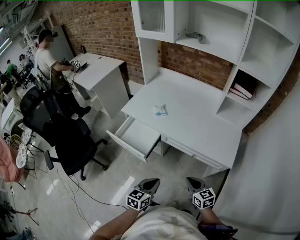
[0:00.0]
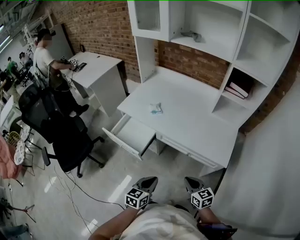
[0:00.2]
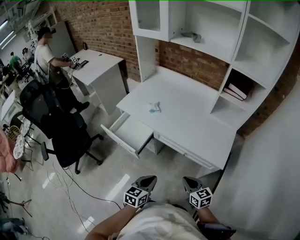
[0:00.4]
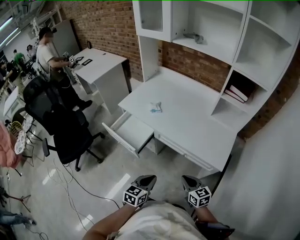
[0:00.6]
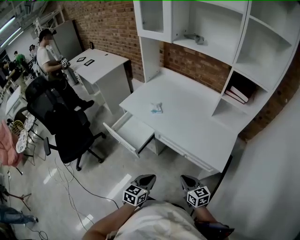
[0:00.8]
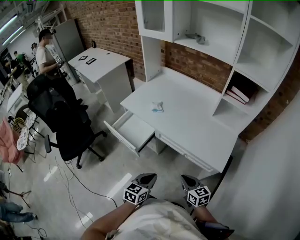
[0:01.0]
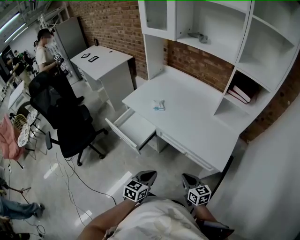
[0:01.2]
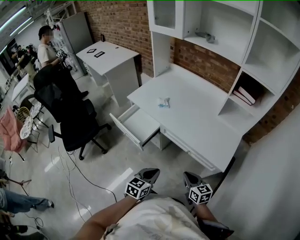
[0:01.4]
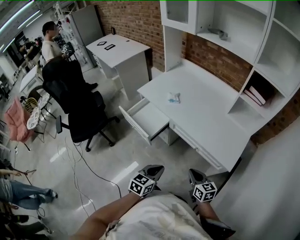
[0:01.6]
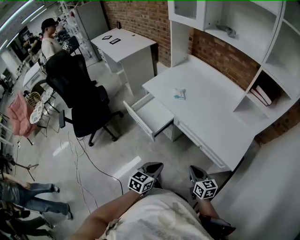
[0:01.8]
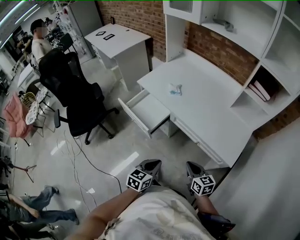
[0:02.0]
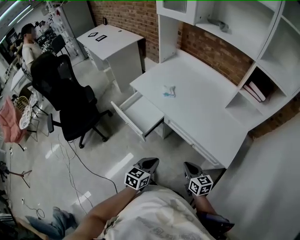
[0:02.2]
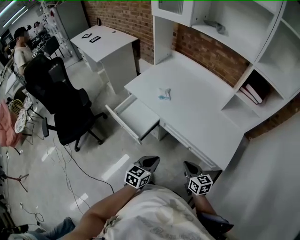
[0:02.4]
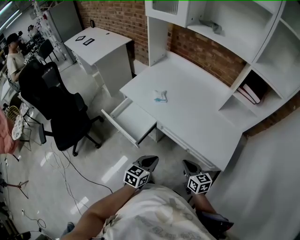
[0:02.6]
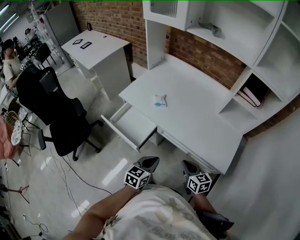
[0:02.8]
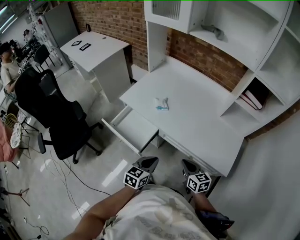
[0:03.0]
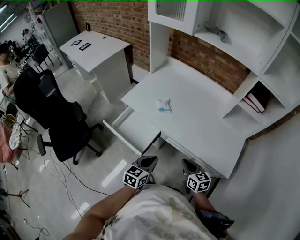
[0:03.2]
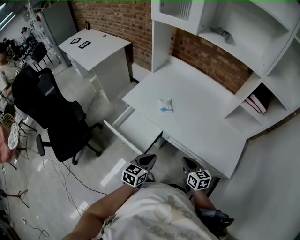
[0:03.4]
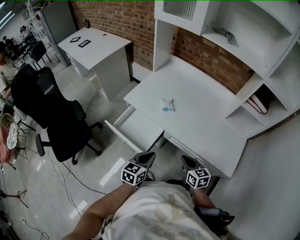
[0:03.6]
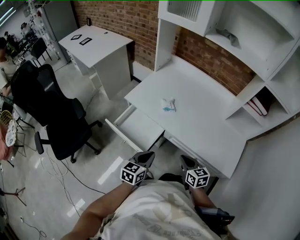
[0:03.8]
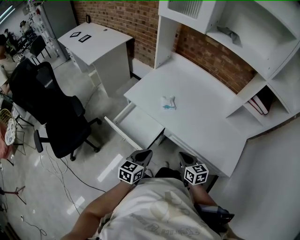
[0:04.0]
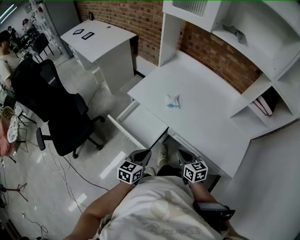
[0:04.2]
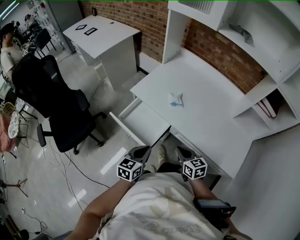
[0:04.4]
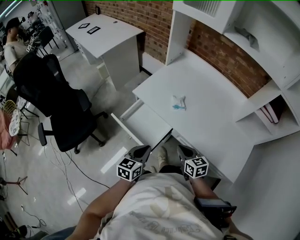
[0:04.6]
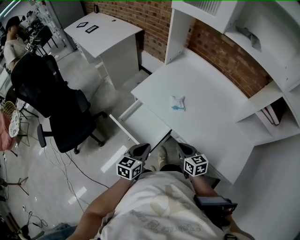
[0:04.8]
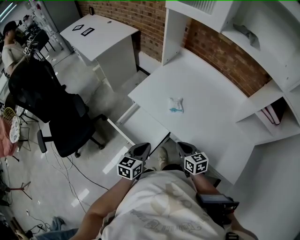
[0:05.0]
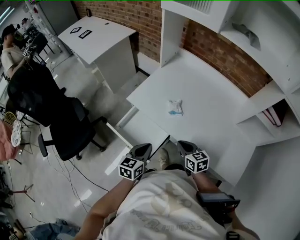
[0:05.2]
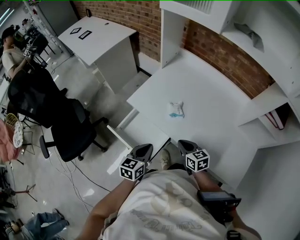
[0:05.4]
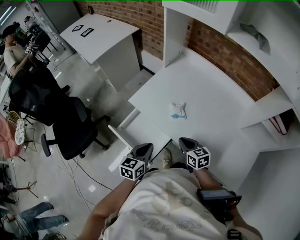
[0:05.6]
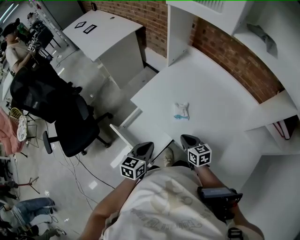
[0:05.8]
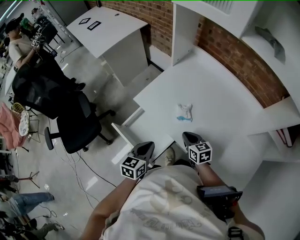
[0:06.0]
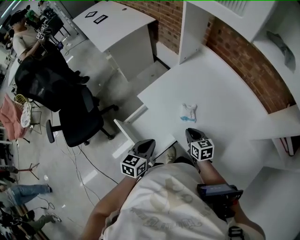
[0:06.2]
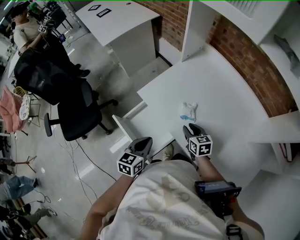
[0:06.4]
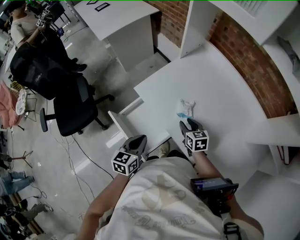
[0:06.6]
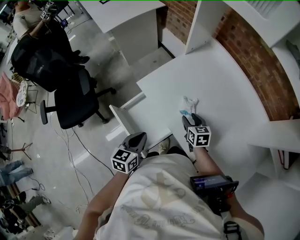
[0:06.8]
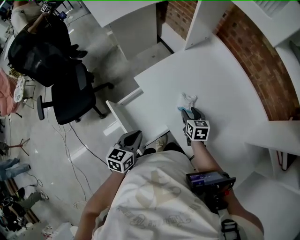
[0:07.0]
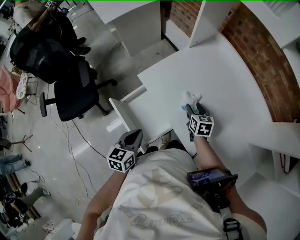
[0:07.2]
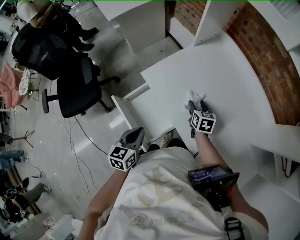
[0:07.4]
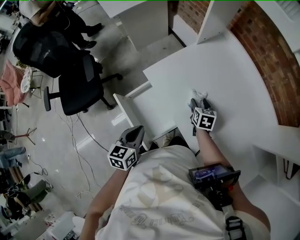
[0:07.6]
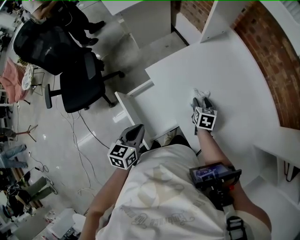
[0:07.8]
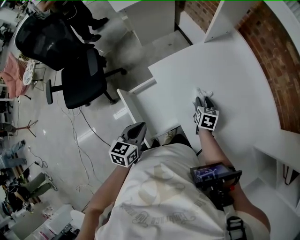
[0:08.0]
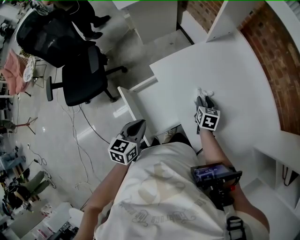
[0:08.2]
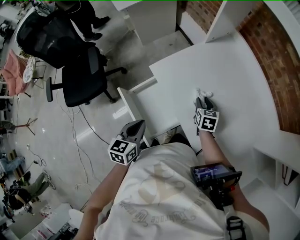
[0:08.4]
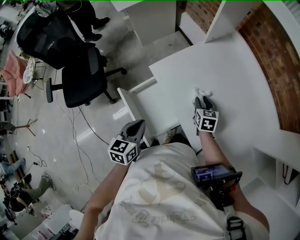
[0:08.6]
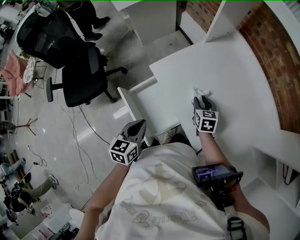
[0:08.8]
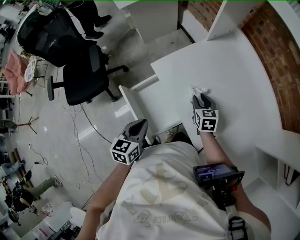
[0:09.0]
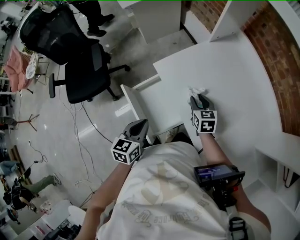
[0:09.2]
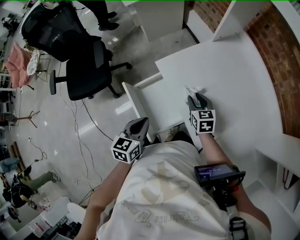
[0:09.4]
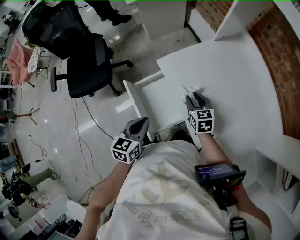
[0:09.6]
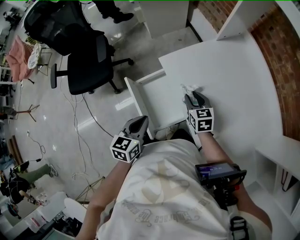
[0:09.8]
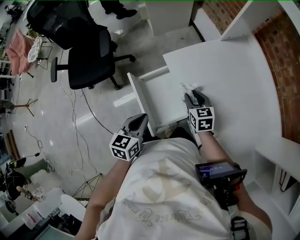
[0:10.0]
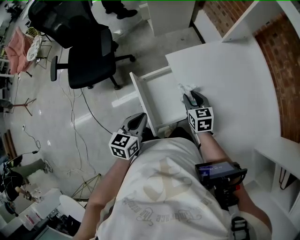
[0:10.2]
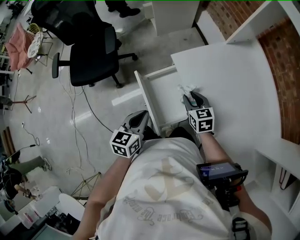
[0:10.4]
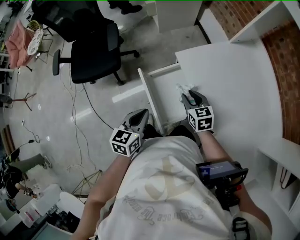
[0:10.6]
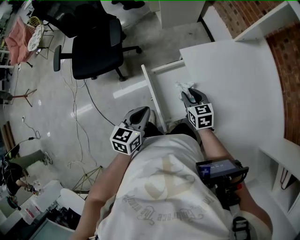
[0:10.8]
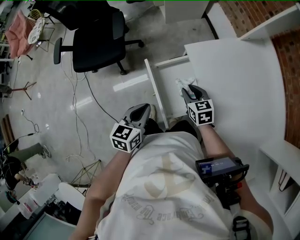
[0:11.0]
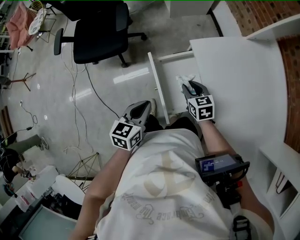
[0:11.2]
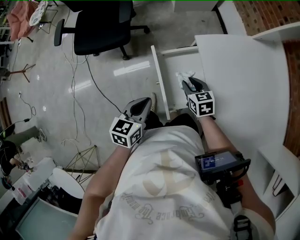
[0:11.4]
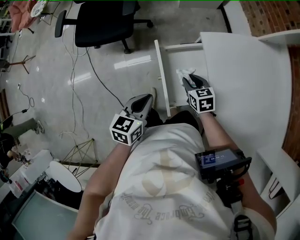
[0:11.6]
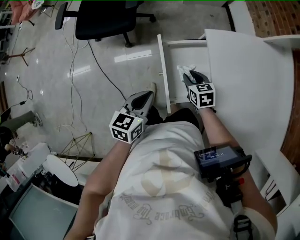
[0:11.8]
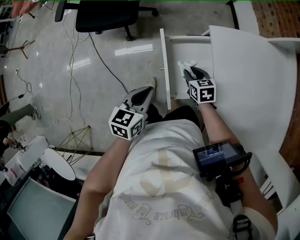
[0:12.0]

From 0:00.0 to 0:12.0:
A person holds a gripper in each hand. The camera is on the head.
From 0:00.0 to 0:01.6: The grippers both shift to the right by roughly 5 cm.
From 0:01.6 to 0:03.0: The left gripper shifts approximately 15 cm forward; the right gripper shifts approximately 15 cm forward and to the left.
From 0:03.0 to 0:04.4: The left gripper goes some 15 cm to the left. Meanwhile the right gripper goes approximately 15 cm to the left and forward.
From 0:04.4 to 0:06.0: The two grippers go about 15 cm forward.
From 0:06.0 to 0:07.6: The left gripper goes some 5 cm to the left. Meanwhile the right gripper travels forward and downward by about 15 cm, and opens.
From 0:07.6 to 0:09.0: The right gripper shifts by some 5 cm.
From 0:09.0 to 0:10.4: The left gripper travels to the left by some 5 cm, while the right gripper travels to the left by some 15 cm, and changes its angle by about 20 degrees.
From 0:10.4 to 0:12.0: The right gripper goes roughly 15 cm downward and to the left, and rotates roughly 20 degrees. The left gripper goes approximately 5 cm to the left.

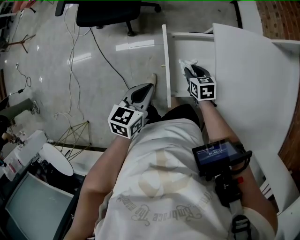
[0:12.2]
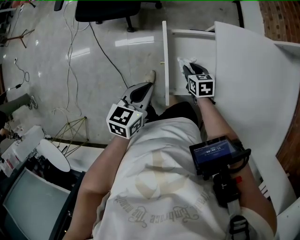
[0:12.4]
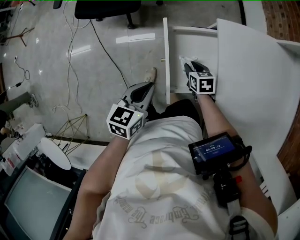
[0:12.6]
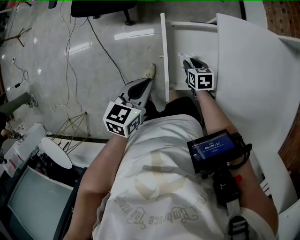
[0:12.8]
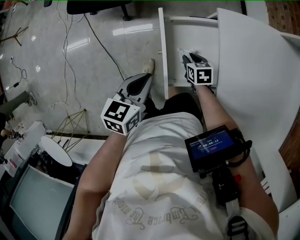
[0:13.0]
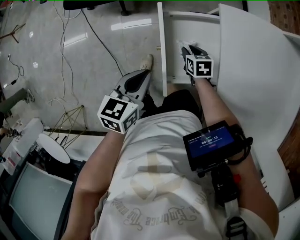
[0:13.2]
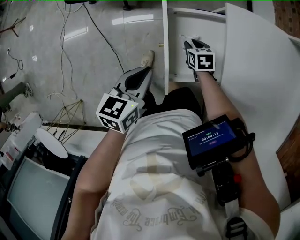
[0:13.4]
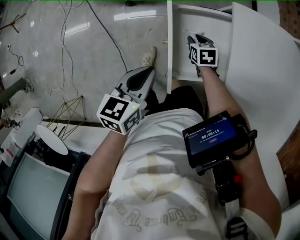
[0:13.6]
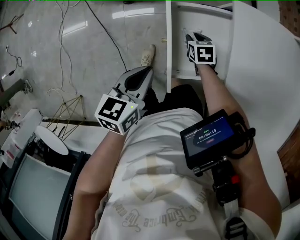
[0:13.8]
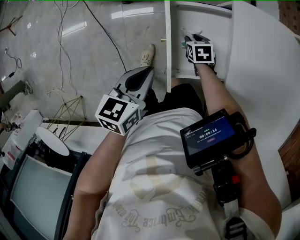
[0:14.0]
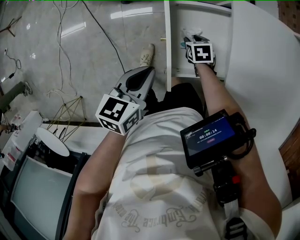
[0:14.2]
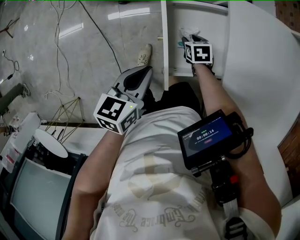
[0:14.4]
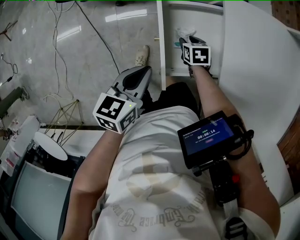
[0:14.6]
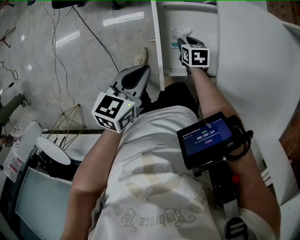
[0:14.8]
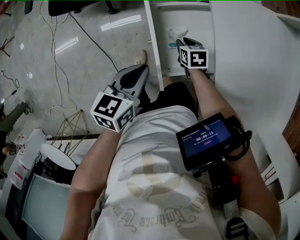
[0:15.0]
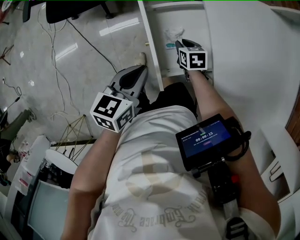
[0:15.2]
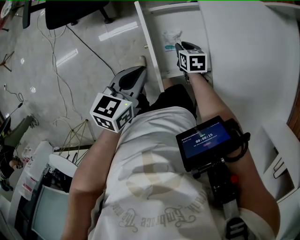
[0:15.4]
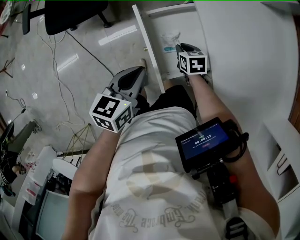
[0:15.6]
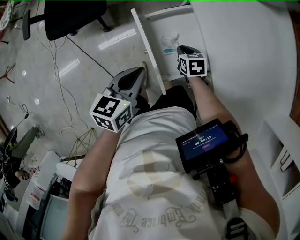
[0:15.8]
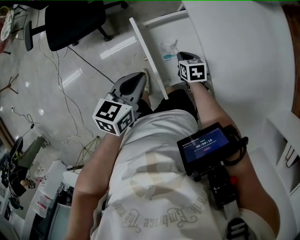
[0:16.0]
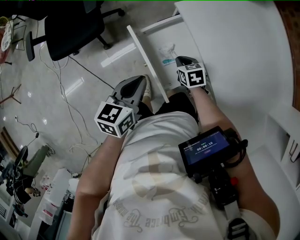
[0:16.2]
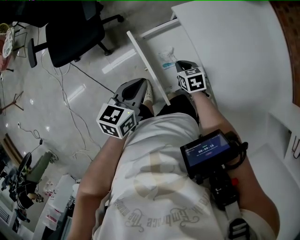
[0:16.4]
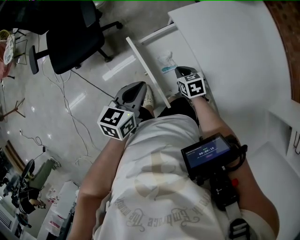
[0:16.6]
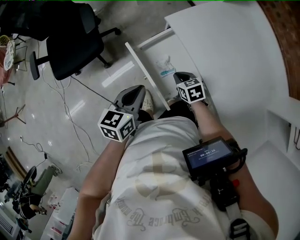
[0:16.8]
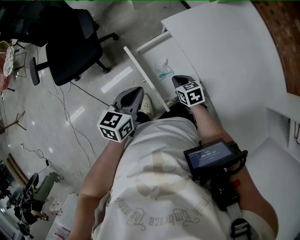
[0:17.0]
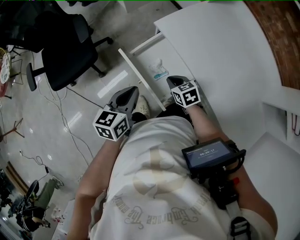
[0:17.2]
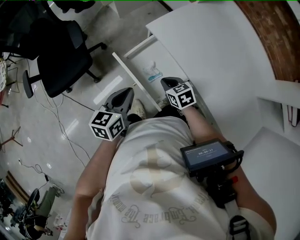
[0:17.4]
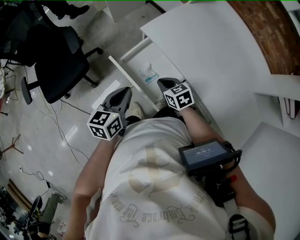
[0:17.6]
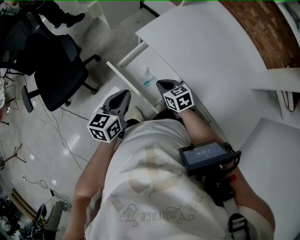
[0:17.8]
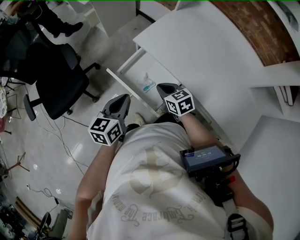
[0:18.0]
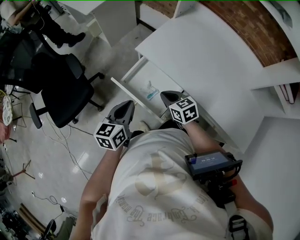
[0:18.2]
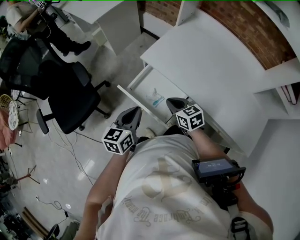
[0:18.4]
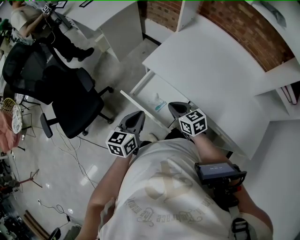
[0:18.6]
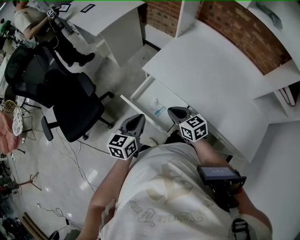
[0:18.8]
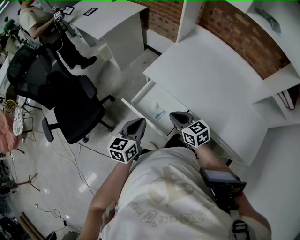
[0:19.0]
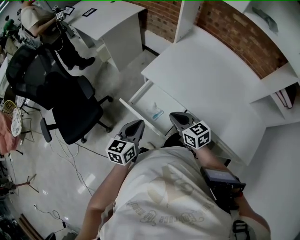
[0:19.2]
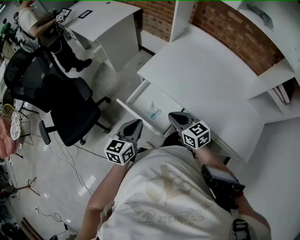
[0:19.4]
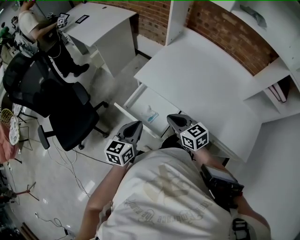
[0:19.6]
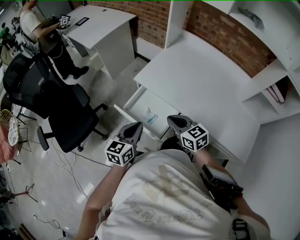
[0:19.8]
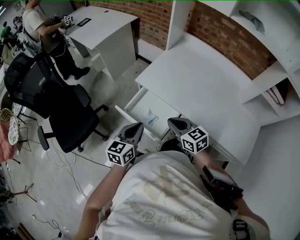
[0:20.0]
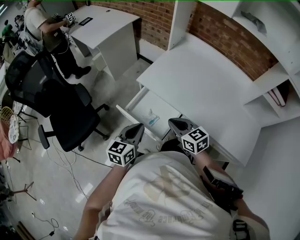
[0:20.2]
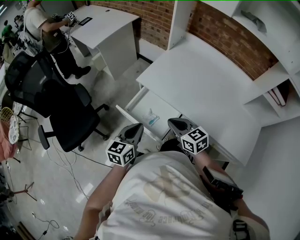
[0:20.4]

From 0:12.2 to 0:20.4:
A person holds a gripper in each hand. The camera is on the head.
From 0:12.2 to 0:13.8: The right gripper goes about 10 cm downward.
From 0:13.8 to 0:15.4: The right gripper is displaced upward by approximately 5 cm.
From 0:15.4 to 0:17.2: The right gripper travels upward and backward by some 15 cm, while the left gripper shifts approximately 5 cm upward.
From 0:17.2 to 0:18.8: The right gripper is displaced upward by some 15 cm, and turns by approximately 30 degrees. Meanwhile the left gripper changes place by some 5 cm.
From 0:18.8 to 0:20.4: The right gripper ends up roughly 5 cm from where it was.

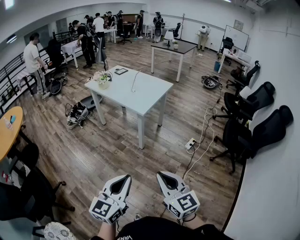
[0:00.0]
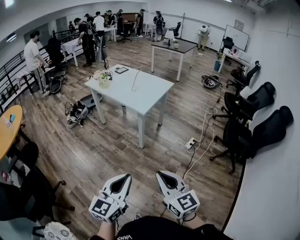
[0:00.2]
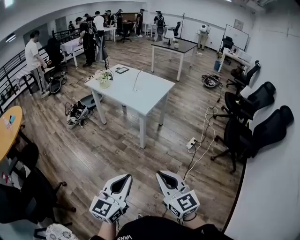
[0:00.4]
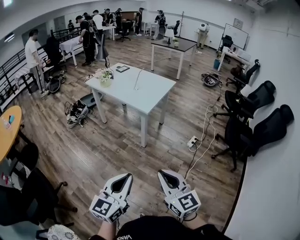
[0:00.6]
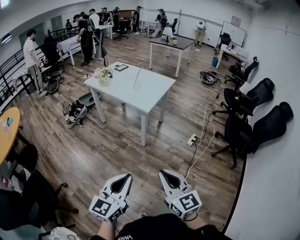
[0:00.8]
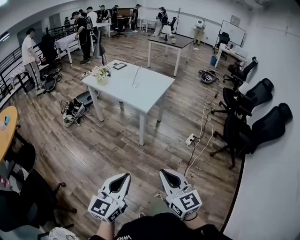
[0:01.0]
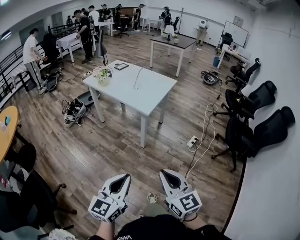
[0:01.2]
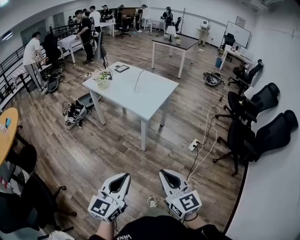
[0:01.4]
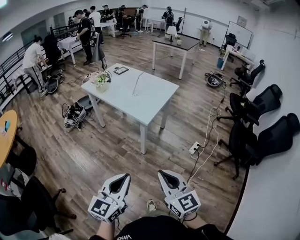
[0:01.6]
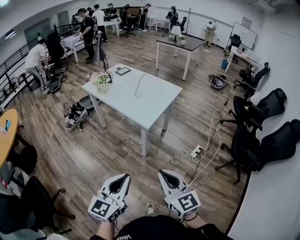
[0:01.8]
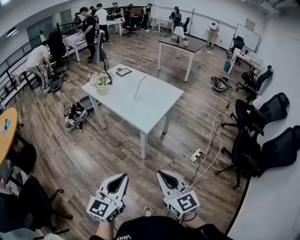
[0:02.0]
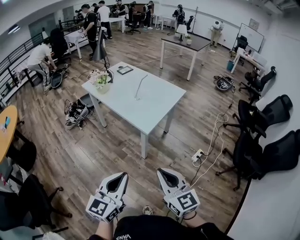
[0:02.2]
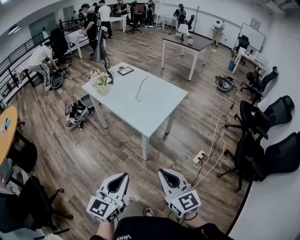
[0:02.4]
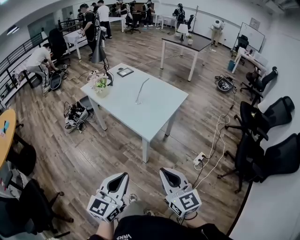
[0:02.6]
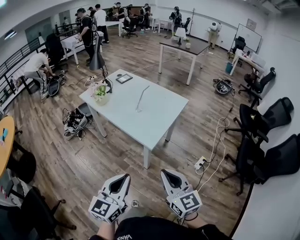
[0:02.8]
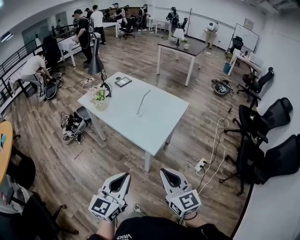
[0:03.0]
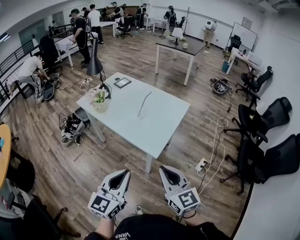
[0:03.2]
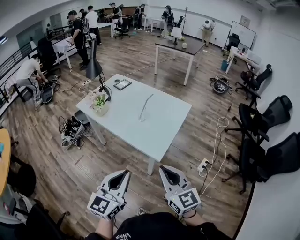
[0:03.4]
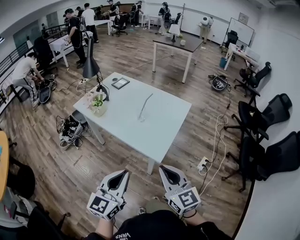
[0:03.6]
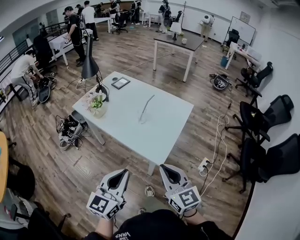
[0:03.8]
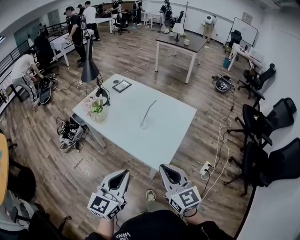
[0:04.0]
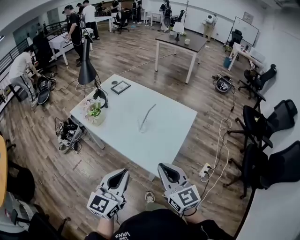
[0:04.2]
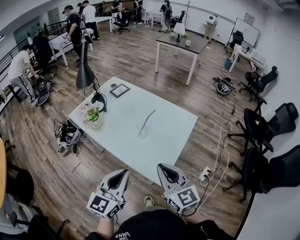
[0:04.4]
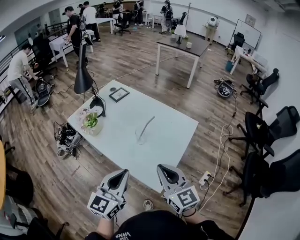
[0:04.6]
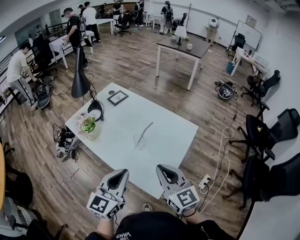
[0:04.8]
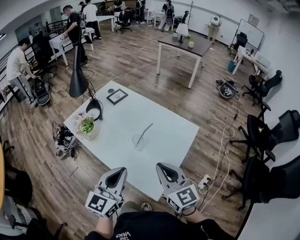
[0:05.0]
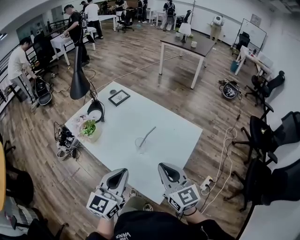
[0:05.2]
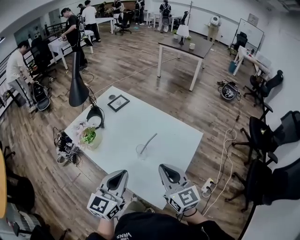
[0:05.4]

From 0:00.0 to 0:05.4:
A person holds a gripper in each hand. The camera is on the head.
From 0:00.0 to 0:01.4: The grippers both shift forward and to the left by some 15 cm.
From 0:01.4 to 0:02.8: The grippers both shift forward by approximately 25 cm.
From 0:02.8 to 0:04.0: The right gripper heads forward and to the left, covering some 20 cm, while the left gripper moves forward, about 20 cm.
From 0:04.0 to 0:05.4: The grippers both shift forward by some 25 cm.